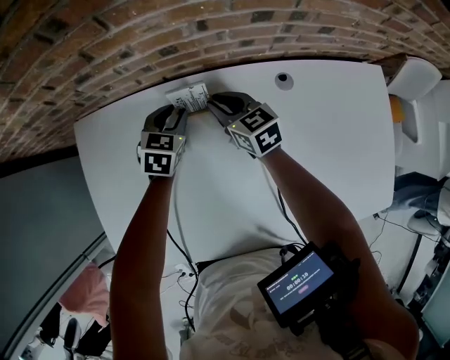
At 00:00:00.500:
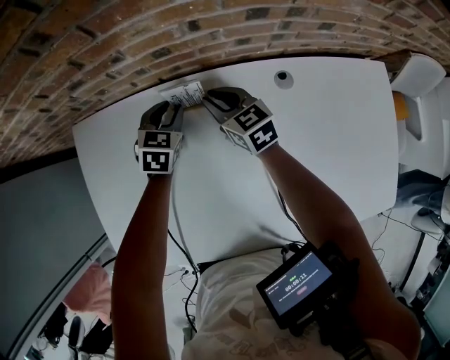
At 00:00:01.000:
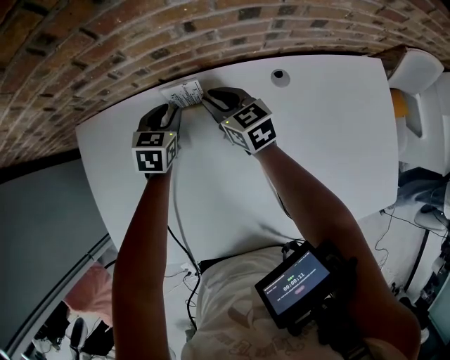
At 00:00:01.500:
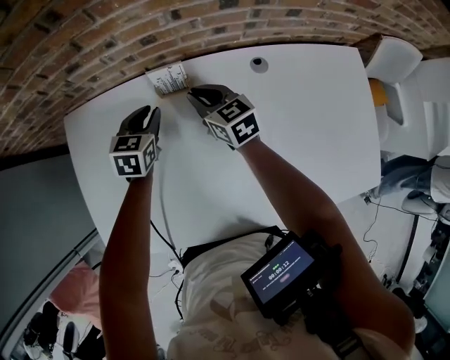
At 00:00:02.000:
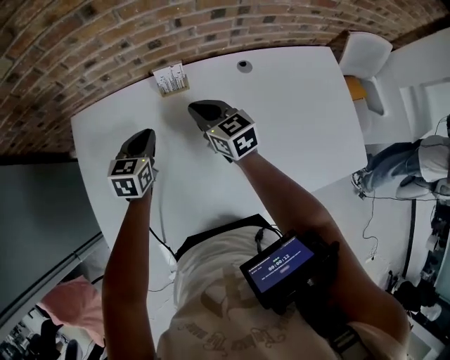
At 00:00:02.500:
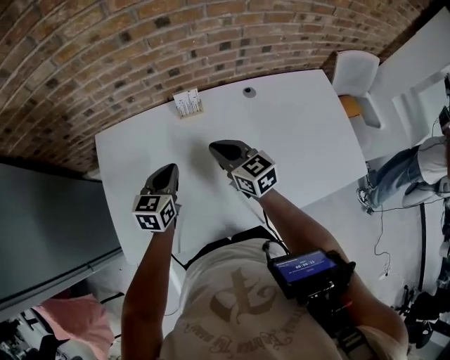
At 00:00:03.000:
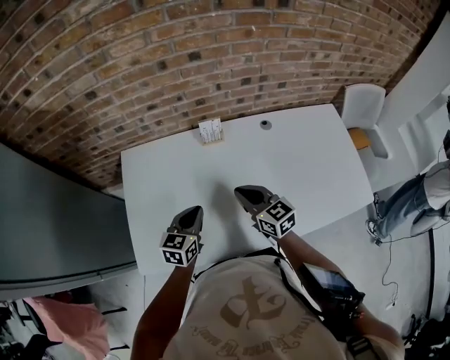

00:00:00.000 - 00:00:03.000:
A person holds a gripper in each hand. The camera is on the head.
00:00:00.000 - 00:00:01.500: The left gripper changes place by approximately 5 cm.
00:00:01.500 - 00:00:03.000: The right gripper moves backward and upward, about 25 cm; the left gripper moves backward, roughly 25 cm, and closes.

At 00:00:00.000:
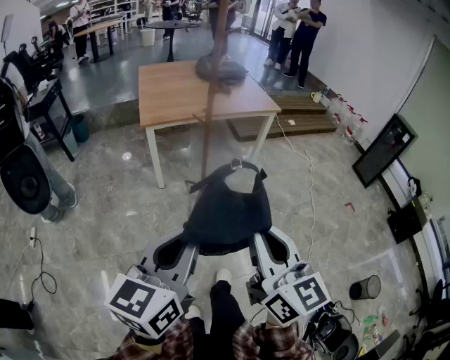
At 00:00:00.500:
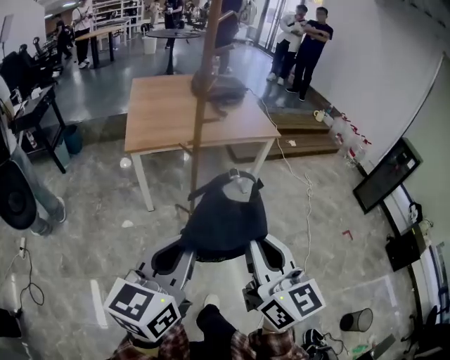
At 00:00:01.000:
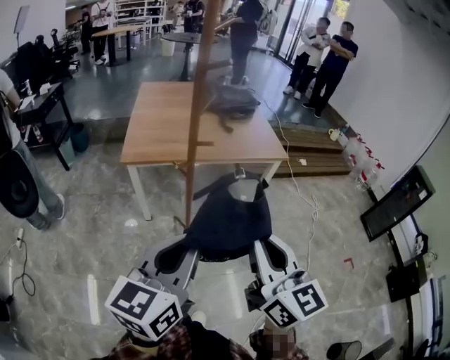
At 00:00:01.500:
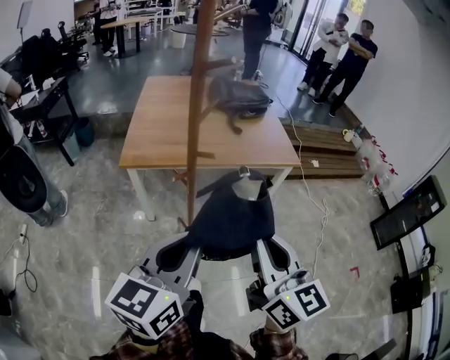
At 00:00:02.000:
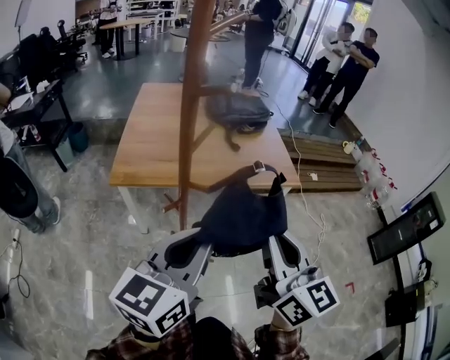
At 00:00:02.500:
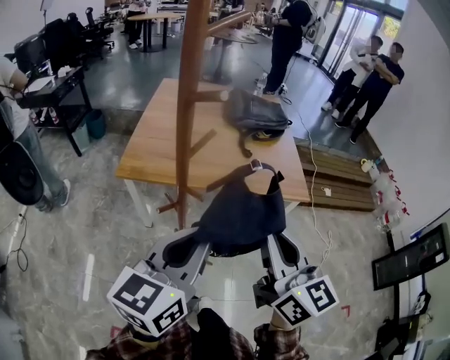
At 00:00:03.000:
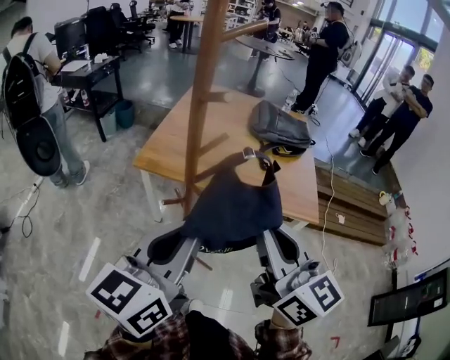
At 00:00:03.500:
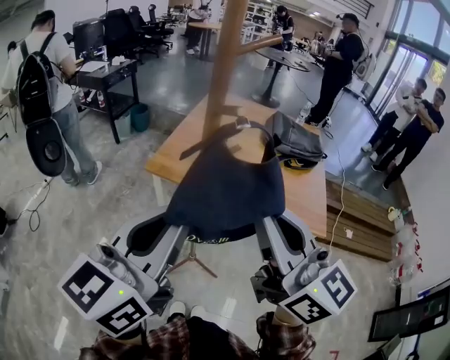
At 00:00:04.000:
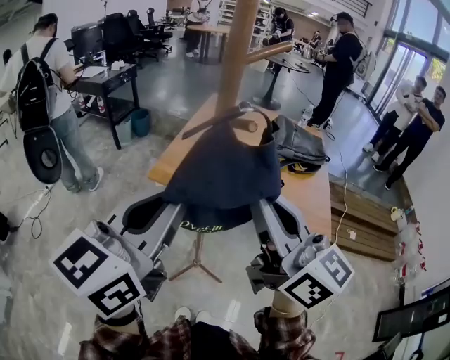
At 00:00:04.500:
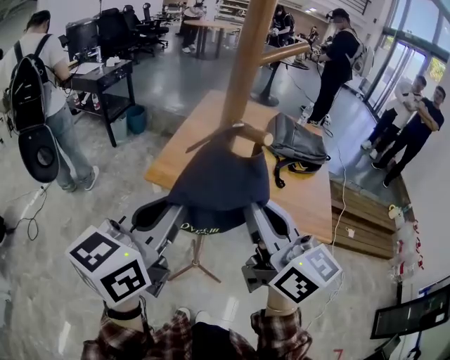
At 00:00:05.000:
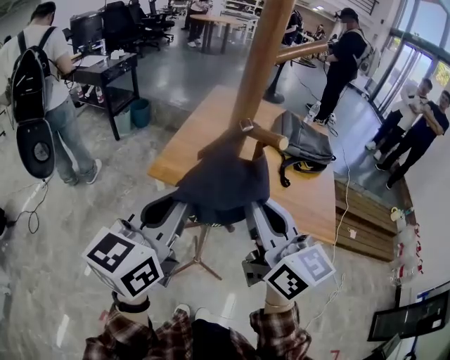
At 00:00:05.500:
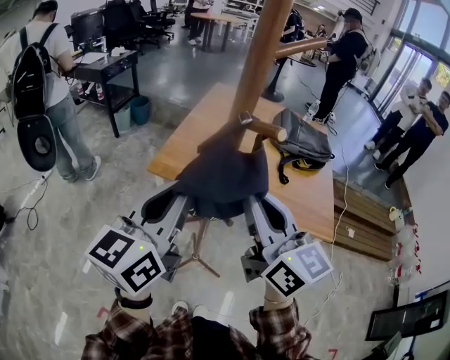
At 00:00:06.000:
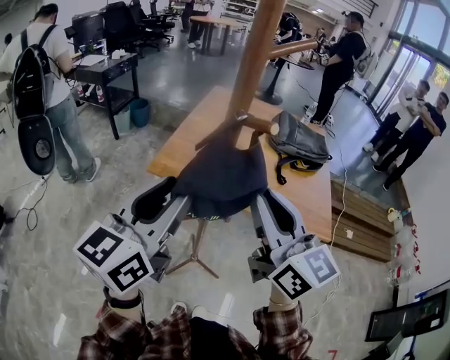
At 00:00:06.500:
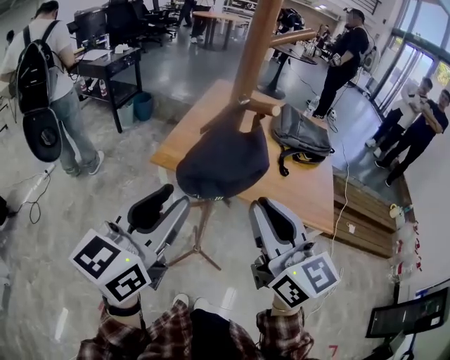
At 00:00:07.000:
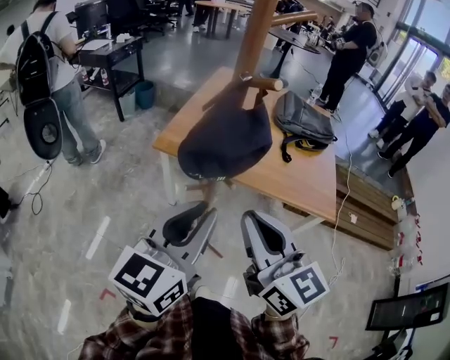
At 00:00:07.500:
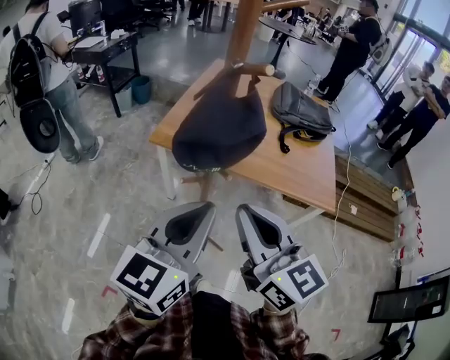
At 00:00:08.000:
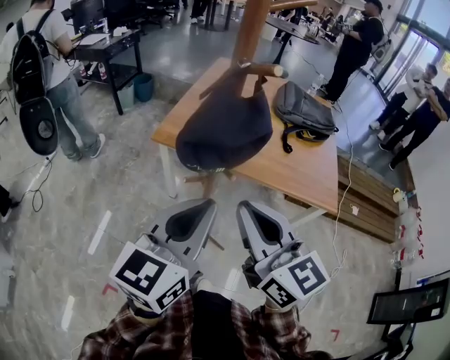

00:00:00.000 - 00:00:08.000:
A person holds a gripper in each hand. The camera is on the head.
00:00:00.000 - 00:00:02.000: Both grippers are carried forward, some 50 cm.
00:00:02.000 - 00:00:04.000: Both grippers travel together upward, some 10 cm. The left gripper changes its angle by roughly 30 degrees, while the right gripper swivels roughly 40 degrees.
00:00:04.000 - 00:00:06.000: The left gripper is displaced downward and forward by some 10 cm, and opens its fingers, while the right gripper shifts approximately 5 cm downward.
00:00:06.000 - 00:00:08.000: The right gripper travels backward and downward by about 10 cm; the left gripper heads backward, to the right and downward, covering approximately 10 cm, and closes its fingers.

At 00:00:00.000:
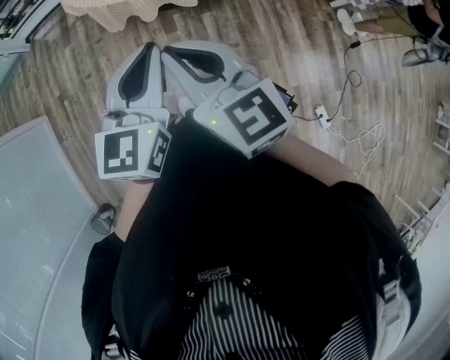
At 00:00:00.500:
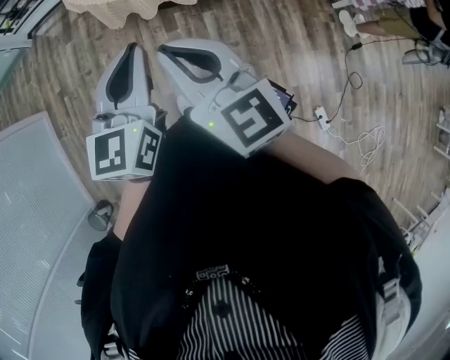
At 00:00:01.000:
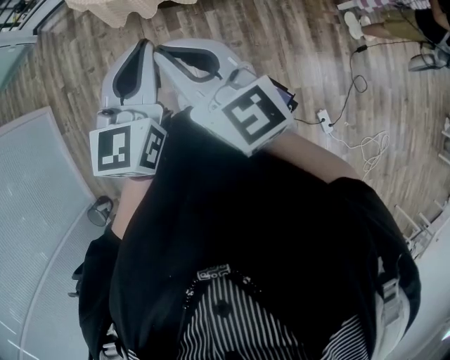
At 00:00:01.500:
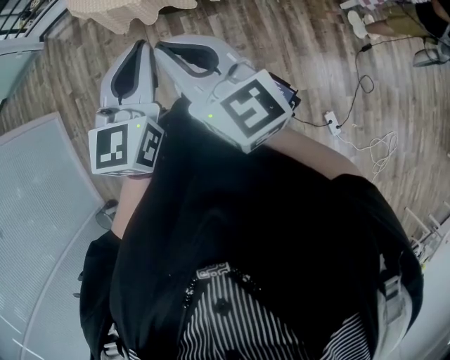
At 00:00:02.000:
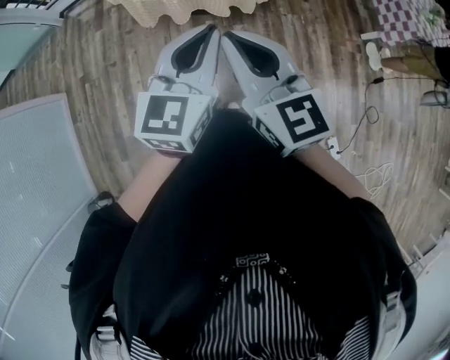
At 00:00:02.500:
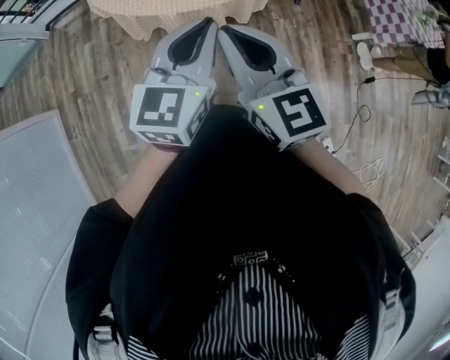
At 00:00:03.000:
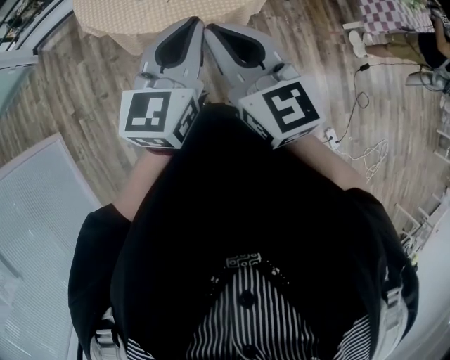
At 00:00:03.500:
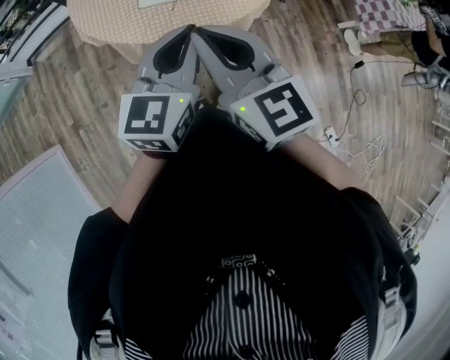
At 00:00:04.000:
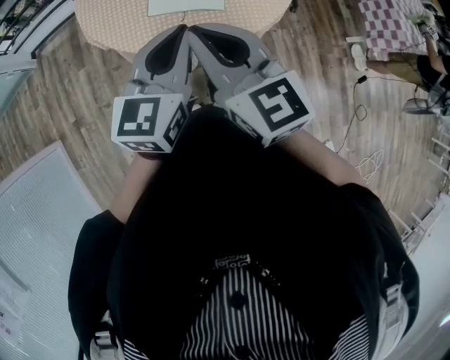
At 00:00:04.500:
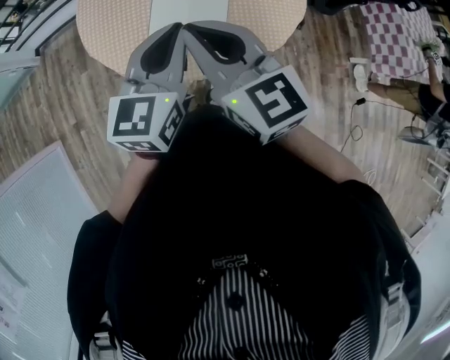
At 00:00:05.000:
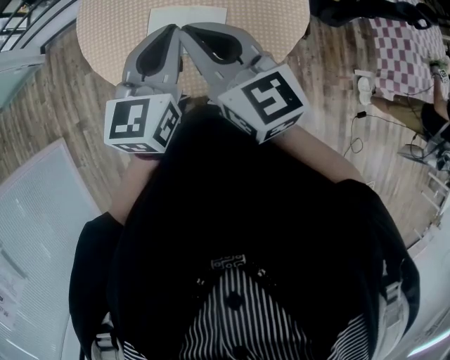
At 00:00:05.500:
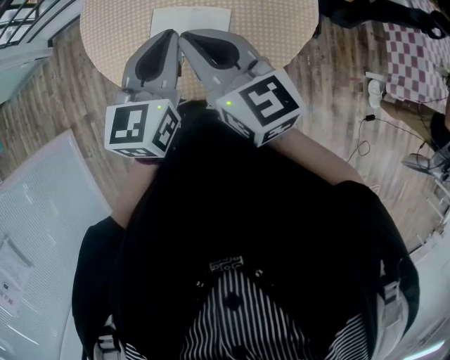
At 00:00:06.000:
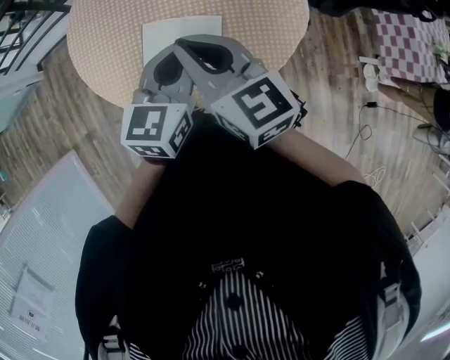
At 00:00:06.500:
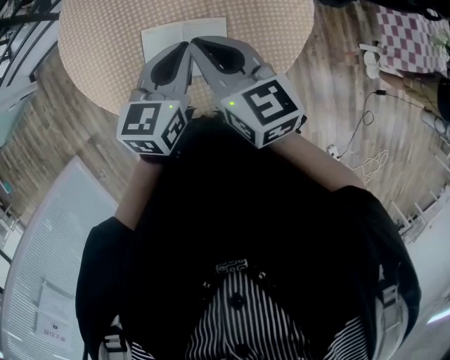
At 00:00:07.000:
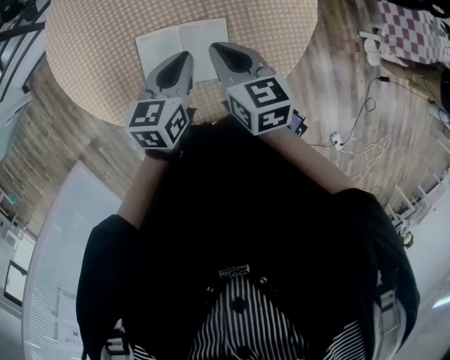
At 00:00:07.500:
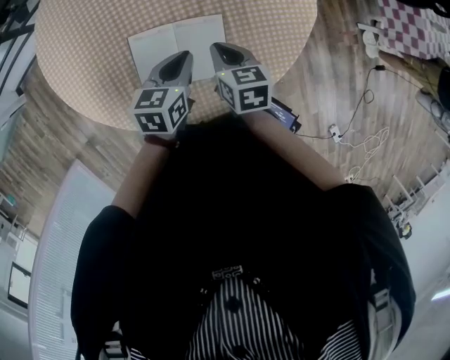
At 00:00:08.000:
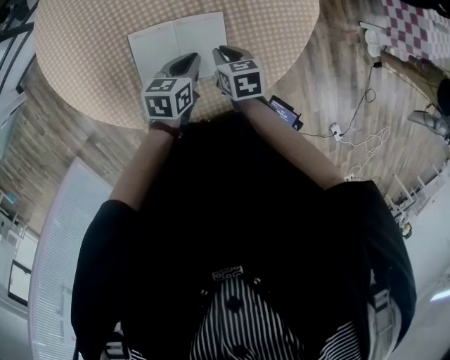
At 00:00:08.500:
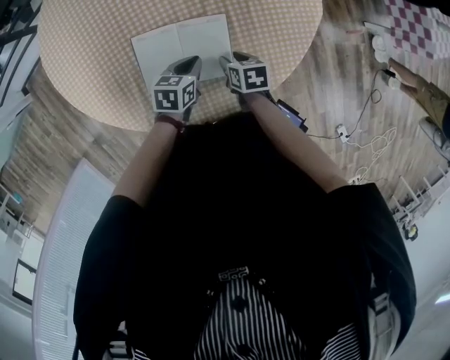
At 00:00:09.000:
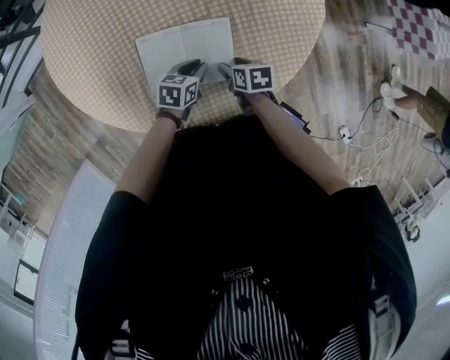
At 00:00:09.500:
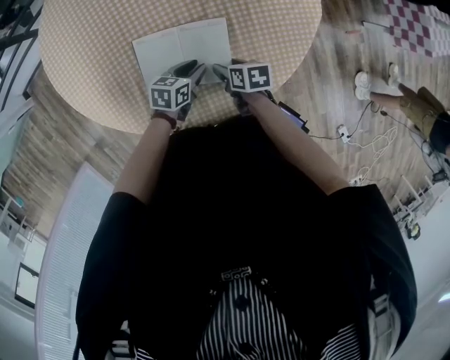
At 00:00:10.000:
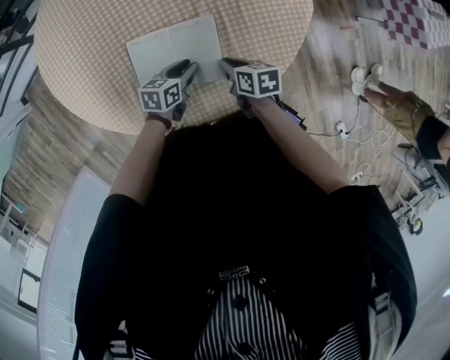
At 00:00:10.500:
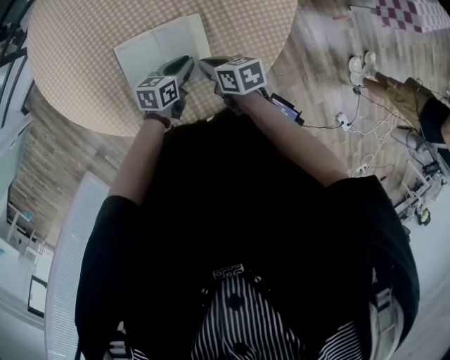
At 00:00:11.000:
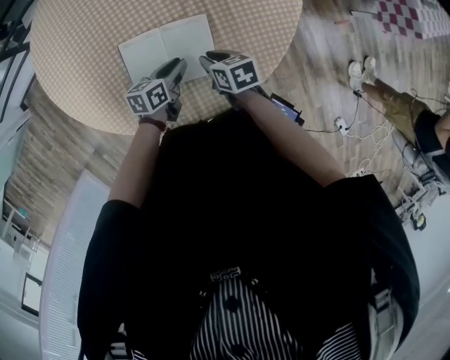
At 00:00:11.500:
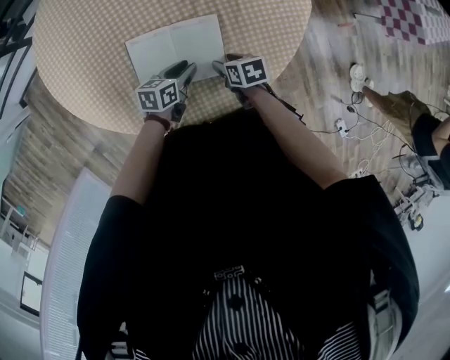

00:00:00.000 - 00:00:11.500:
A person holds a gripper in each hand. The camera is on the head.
00:00:00.000 - 00:00:02.000: The grippers both shift to the right by some 10 cm.
00:00:02.000 - 00:00:04.000: The grippers both shift forward and to the left by about 40 cm.
00:00:04.000 - 00:00:06.000: The two grippers go about 30 cm forward and to the right.
00:00:06.000 - 00:00:07.500: The grippers both shift downward by some 25 cm. The left gripper rotates roughly 30 degrees. The right gripper points its fingers about 30 degrees further downward.
00:00:07.500 - 00:00:09.500: The right gripper goes about 15 cm downward and backward, rotates some 30 degrees, and opens. The left gripper travels downward by about 15 cm, and opens up.
00:00:09.500 - 00:00:11.500: The right gripper closes and opens again.

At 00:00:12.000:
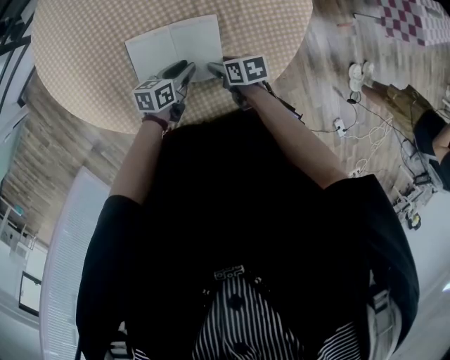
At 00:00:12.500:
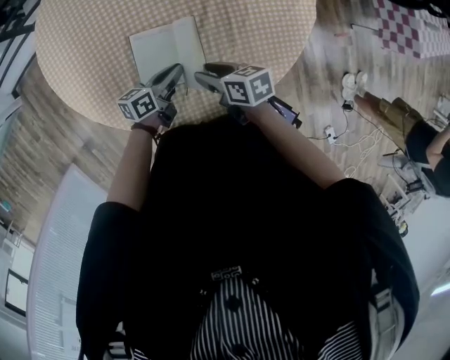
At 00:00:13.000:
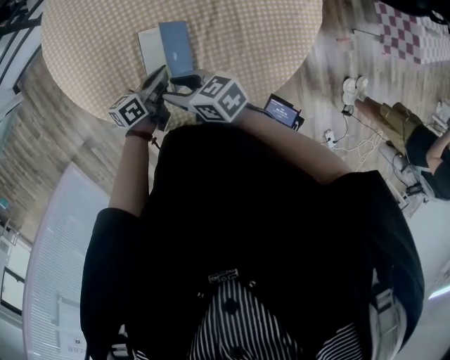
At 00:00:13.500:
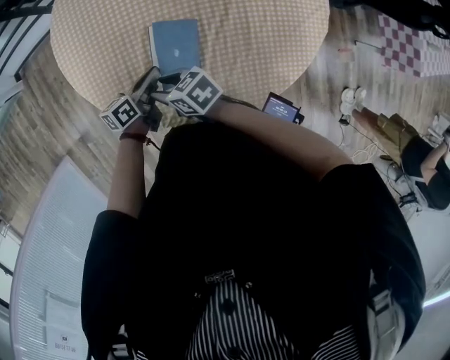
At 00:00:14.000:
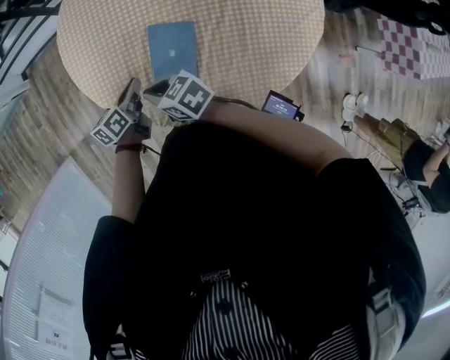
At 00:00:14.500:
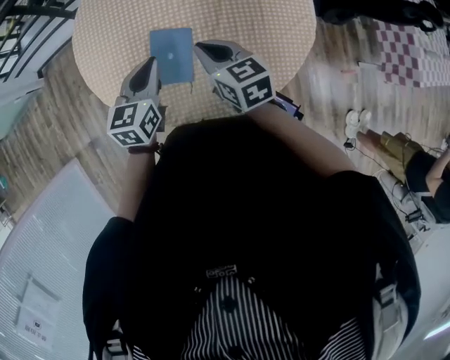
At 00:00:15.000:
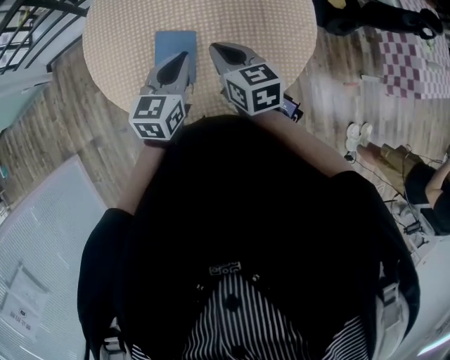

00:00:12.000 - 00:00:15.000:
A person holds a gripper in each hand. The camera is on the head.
00:00:12.000 - 00:00:13.500: The right gripper shifts by about 30 cm, and changes its angle by some 40 degrees; the left gripper changes place by roughly 20 cm, swivels approximately 30 degrees, and closes.
00:00:13.500 - 00:00:15.000: The left gripper goes about 25 cm upward and to the right, and rolls clockwise, seen from behind, by approximately 40 degrees; the right gripper heads to the right and upward, covering about 30 cm, changes its angle by about 40 degrees, and closes its fingers.
